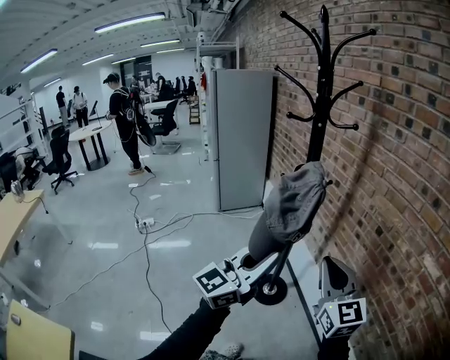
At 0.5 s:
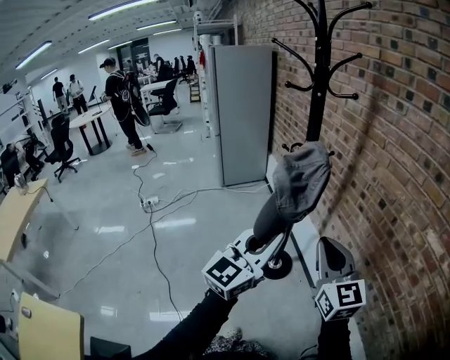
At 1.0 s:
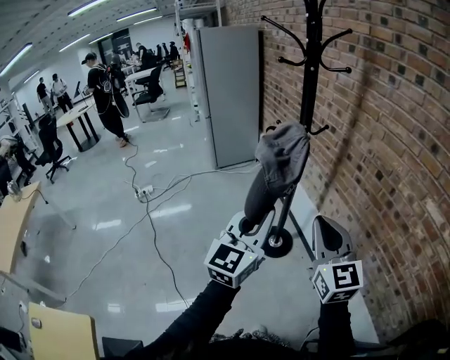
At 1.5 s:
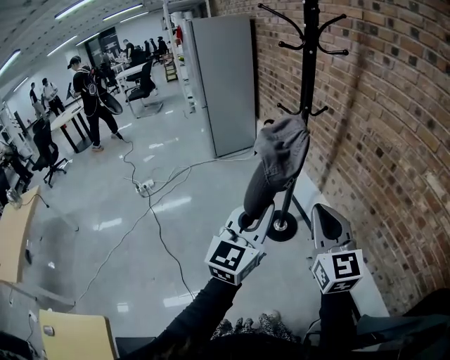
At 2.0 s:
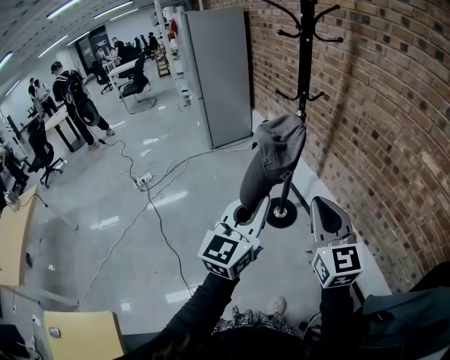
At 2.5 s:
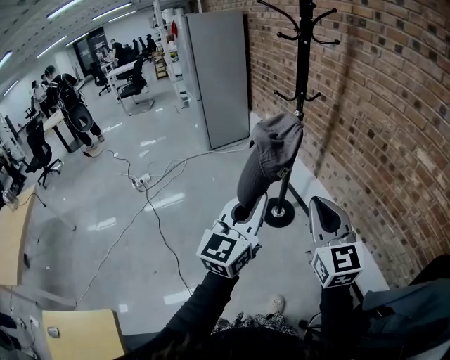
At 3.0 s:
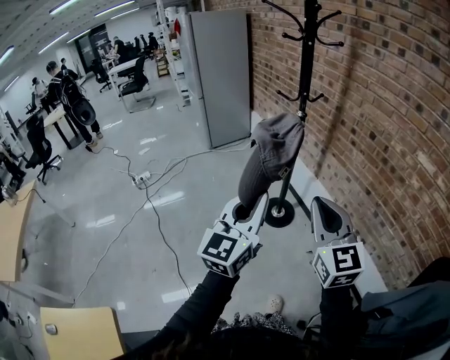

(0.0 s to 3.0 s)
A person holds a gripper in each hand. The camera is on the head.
0.0 s - 1.5 s: The two grippers go roughly 10 cm backward and to the left. The left gripper changes its angle by some 20 degrees.
1.5 s - 3.0 s: The grippers both shift backward by some 10 cm.

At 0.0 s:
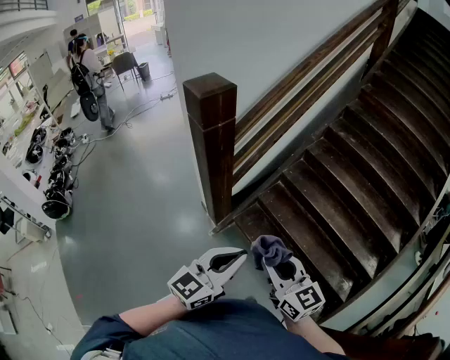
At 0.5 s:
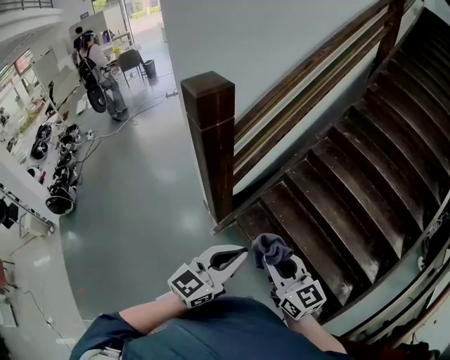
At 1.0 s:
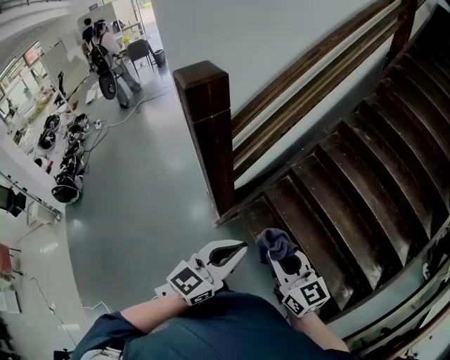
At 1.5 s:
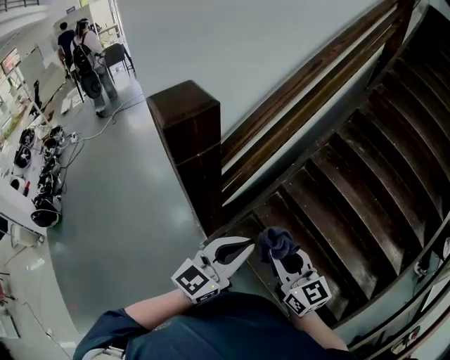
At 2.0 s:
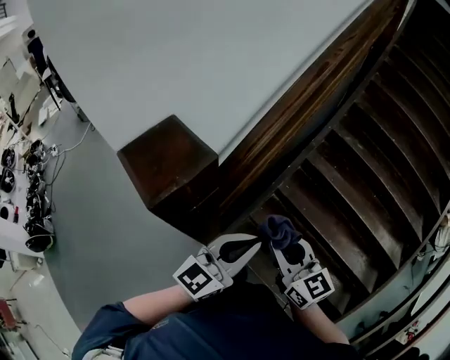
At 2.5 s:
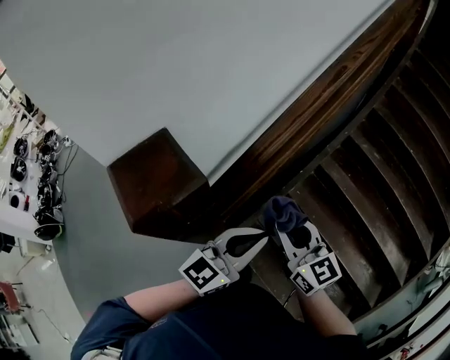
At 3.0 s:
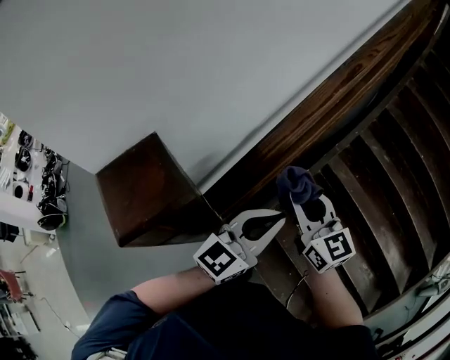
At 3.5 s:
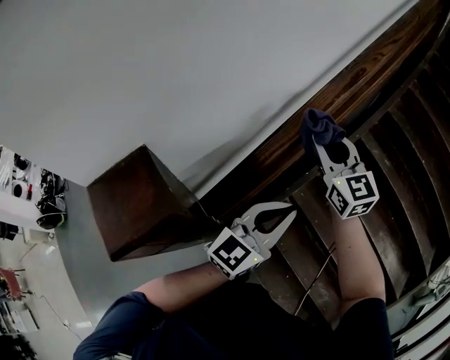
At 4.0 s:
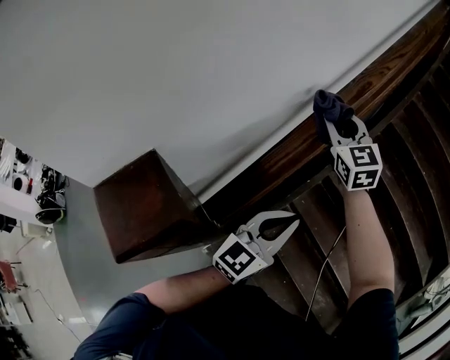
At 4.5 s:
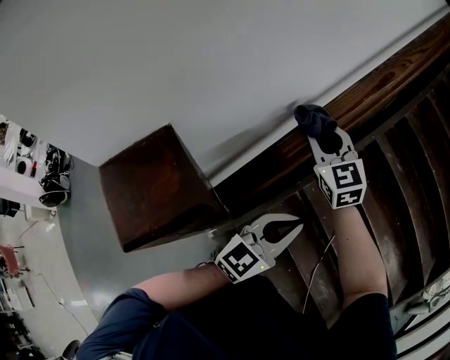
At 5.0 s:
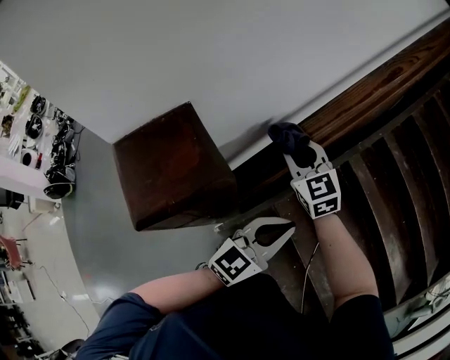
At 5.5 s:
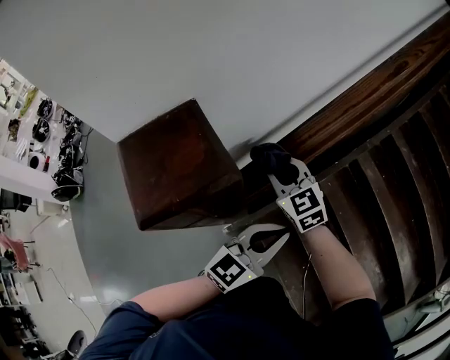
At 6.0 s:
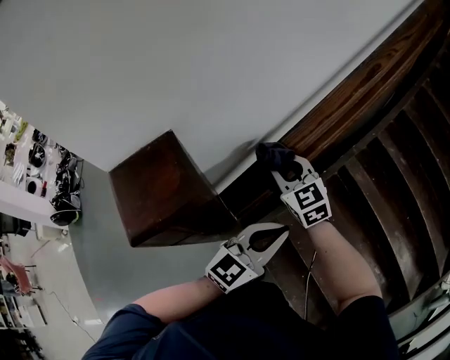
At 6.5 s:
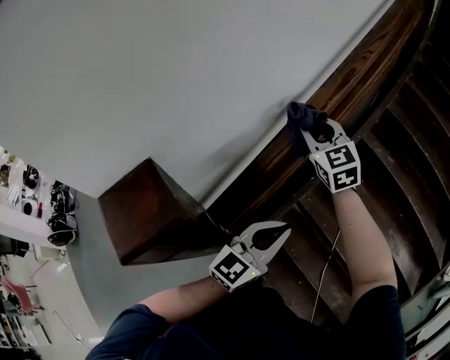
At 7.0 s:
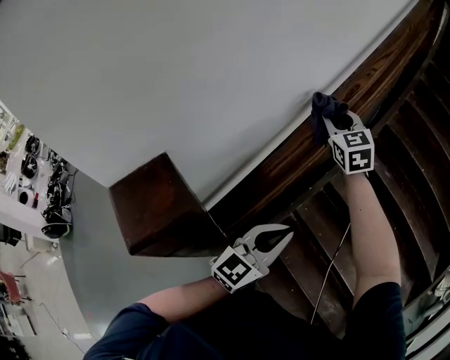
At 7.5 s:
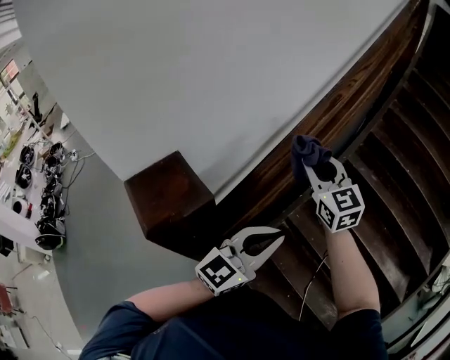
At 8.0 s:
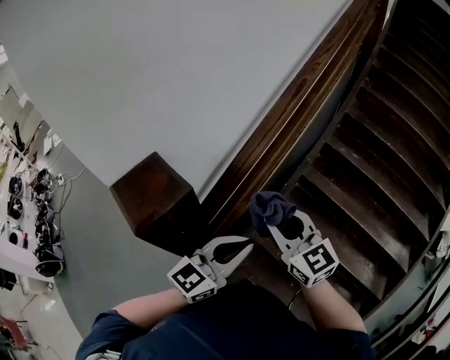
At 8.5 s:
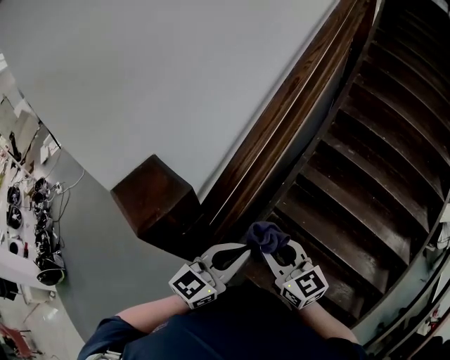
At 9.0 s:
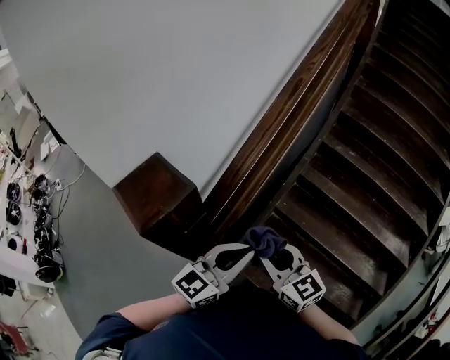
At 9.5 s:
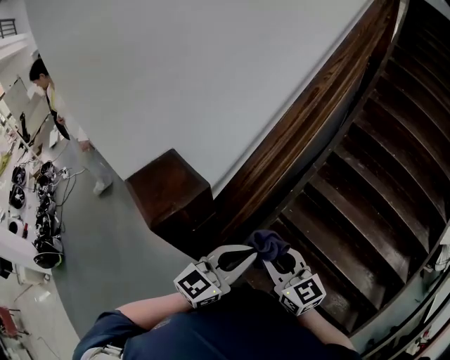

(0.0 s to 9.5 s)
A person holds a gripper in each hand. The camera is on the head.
0.0 s - 2.0 s: Both grippers travel together forward, approximately 40 cm.
2.0 s - 4.0 s: The right gripper goes roughly 40 cm forward, and swivels roughly 30 degrees, while the left gripper goes some 20 cm forward.
4.0 s - 5.5 s: The right gripper goes approximately 35 cm backward, to the left and downward, and rotates approximately 30 degrees. The left gripper shifts some 15 cm backward, downward and to the left.
5.5 s - 7.5 s: The right gripper shifts some 25 cm upward and to the right, goes forward and returns, some 25 cm each way, and turns by about 30 degrees, while the left gripper shifts approximately 10 cm upward.
7.5 s - 9.5 s: The right gripper is displaced backward and downward by approximately 30 cm. Meanwhile the left gripper shifts some 10 cm backward.

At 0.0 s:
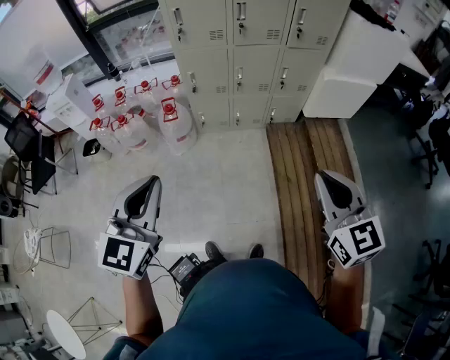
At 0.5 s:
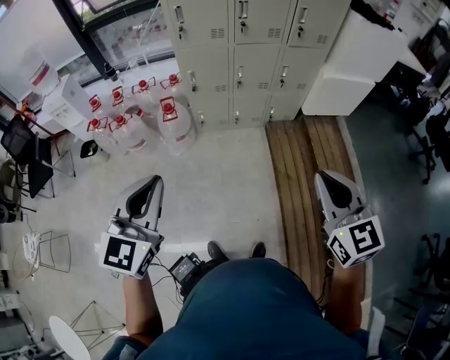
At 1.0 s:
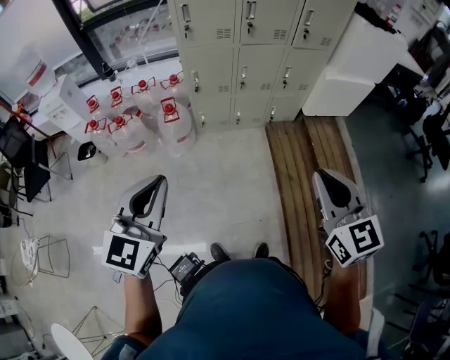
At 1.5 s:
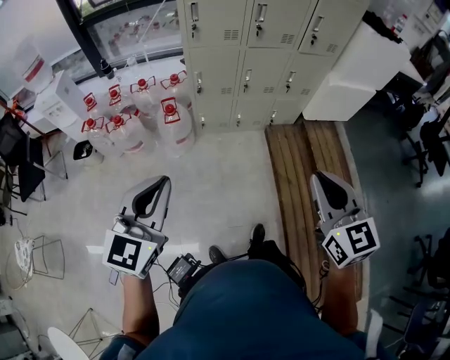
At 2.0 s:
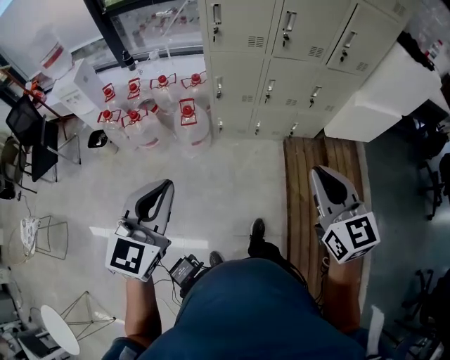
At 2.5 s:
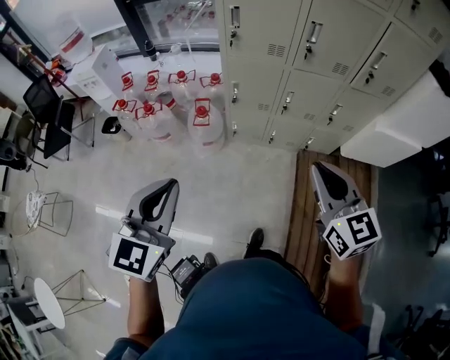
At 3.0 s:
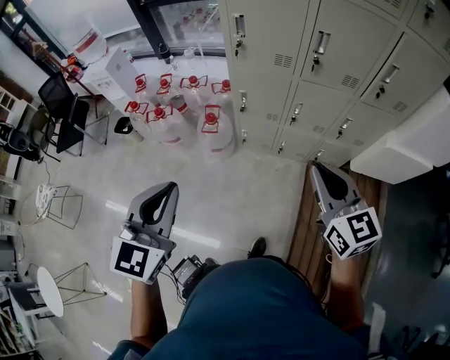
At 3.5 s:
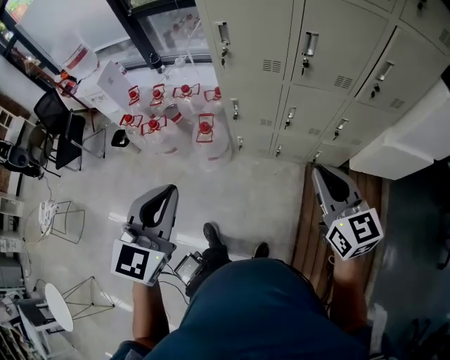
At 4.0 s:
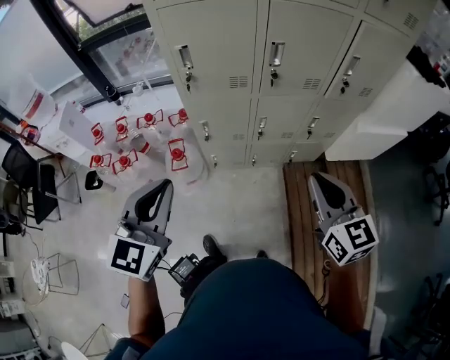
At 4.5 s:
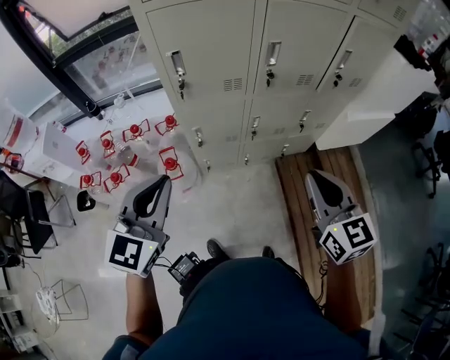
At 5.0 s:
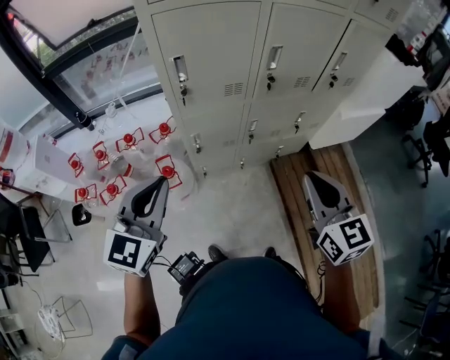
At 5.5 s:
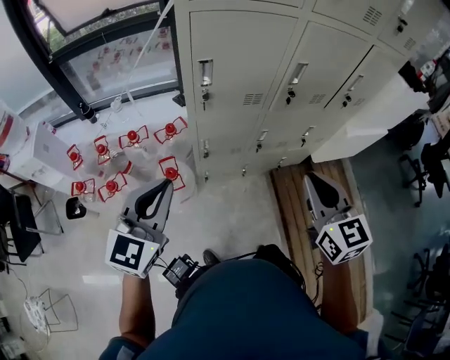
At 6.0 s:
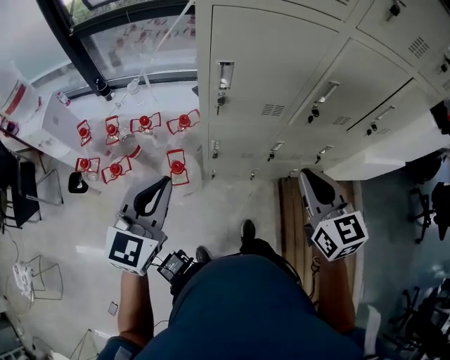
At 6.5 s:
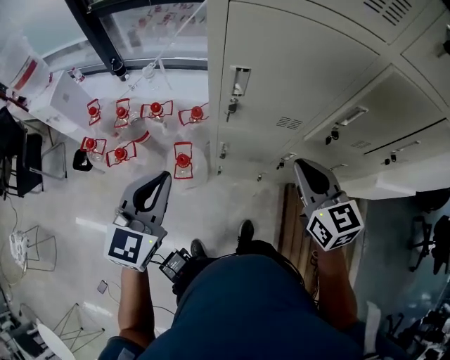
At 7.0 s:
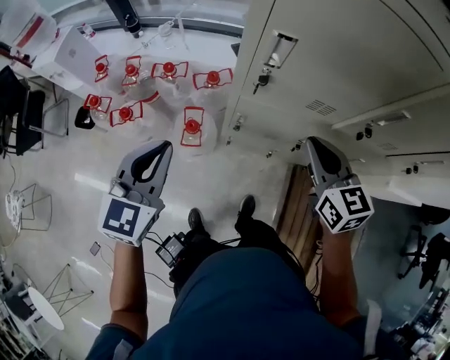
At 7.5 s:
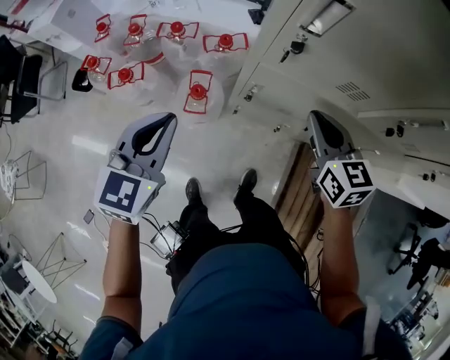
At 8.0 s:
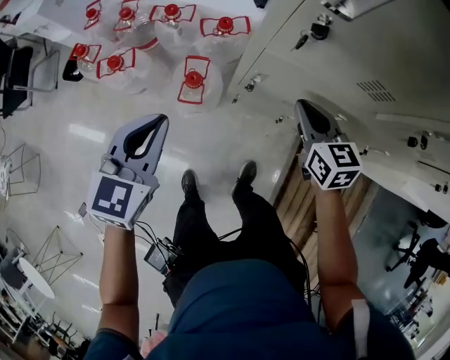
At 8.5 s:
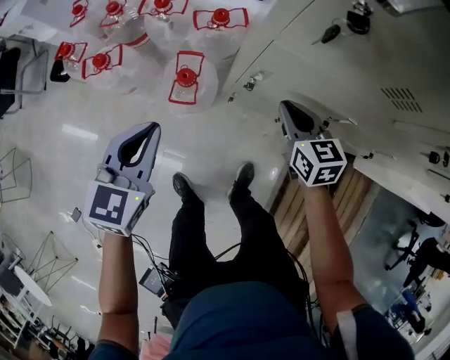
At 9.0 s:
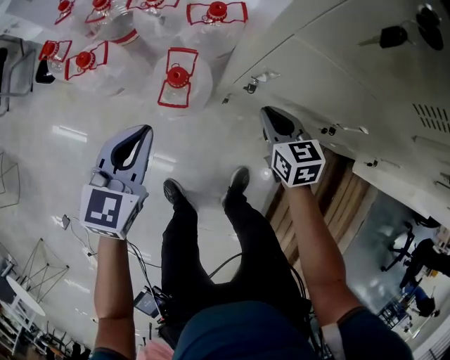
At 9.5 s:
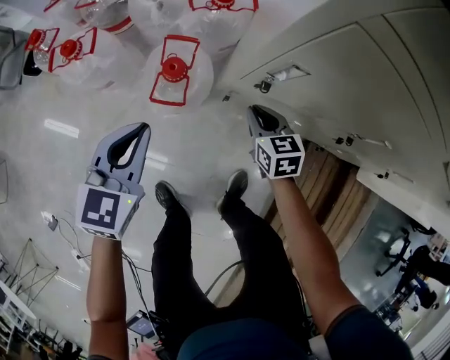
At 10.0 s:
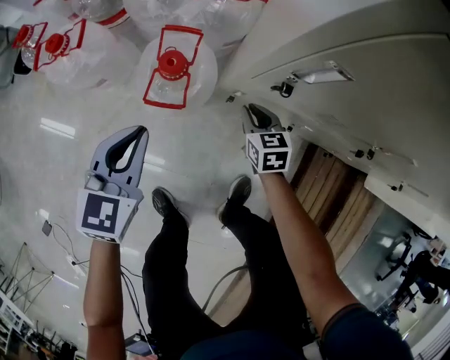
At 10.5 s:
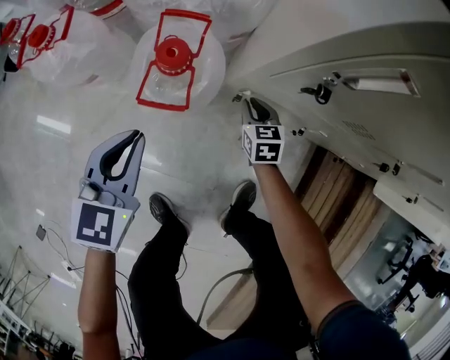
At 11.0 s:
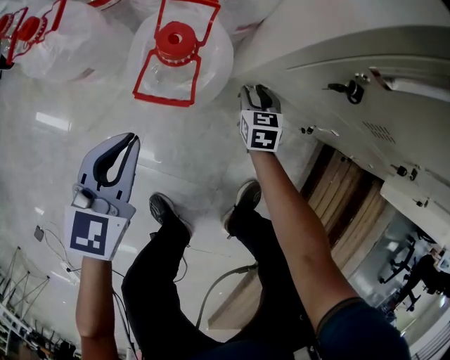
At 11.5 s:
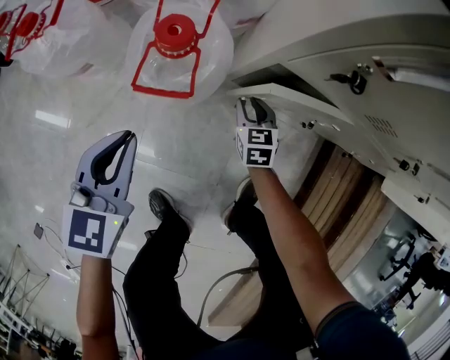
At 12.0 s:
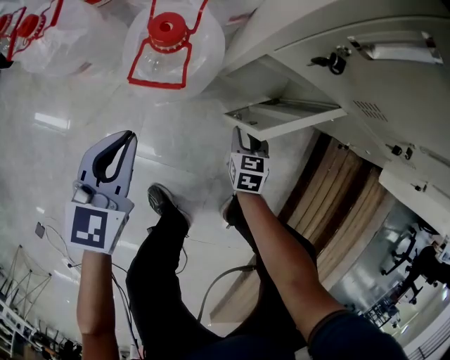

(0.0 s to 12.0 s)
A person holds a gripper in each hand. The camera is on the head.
0.0 s - 2.0 s: The grippers both shift forward and to the left by some 20 cm.
2.0 s - 4.0 s: The left gripper heads forward, covering roughly 30 cm; the right gripper is displaced forward and to the right by roughly 25 cm.
4.0 s - 6.0 s: Both grippers travel together to the left and forward, about 25 cm.
6.0 s - 8.0 s: The right gripper heads downward and forward, covering some 40 cm, and rotates roughly 20 degrees. The left gripper is displaced downward by some 25 cm, and changes its angle by approximately 20 degrees.
8.0 s - 10.0 s: Both grippers travel together downward, roughly 40 cm.
10.0 s - 12.0 s: The right gripper goes roughly 20 cm downward and backward, and opens its fingers. Meanwhile the left gripper is displaced downward by some 10 cm.

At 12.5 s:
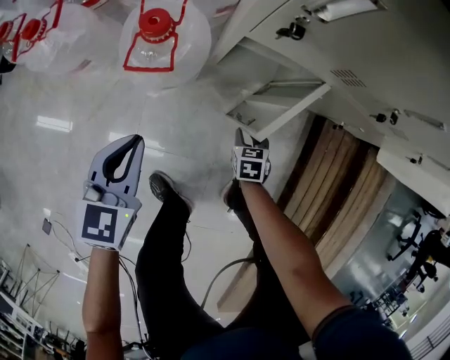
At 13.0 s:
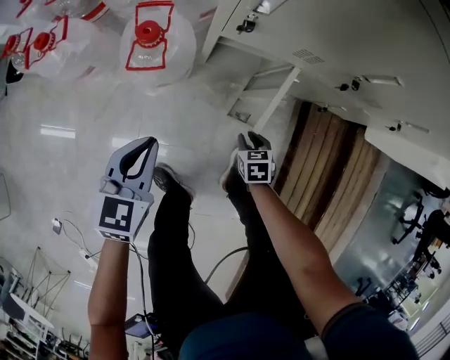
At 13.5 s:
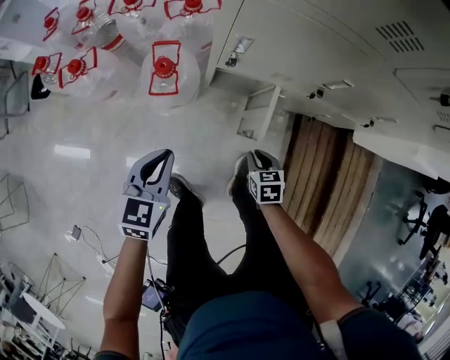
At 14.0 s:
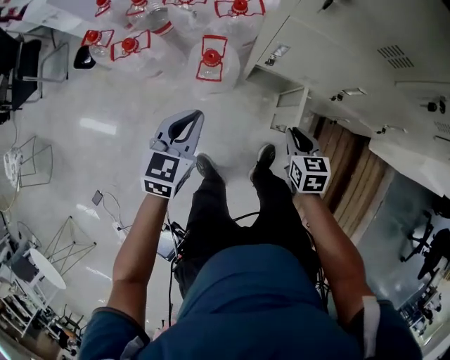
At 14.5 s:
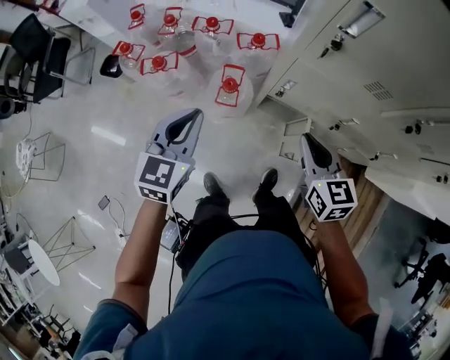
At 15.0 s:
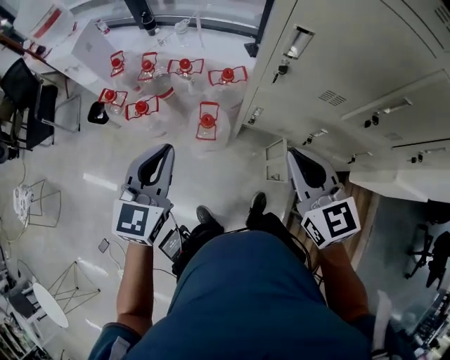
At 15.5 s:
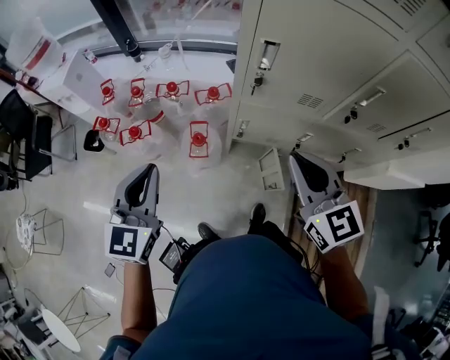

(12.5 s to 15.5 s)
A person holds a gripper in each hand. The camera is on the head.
12.5 s - 14.0 s: The grippers both shift upward by some 40 cm.
14.0 s - 15.5 s: The two grippers go approximately 35 cm upward. The right gripper tilts its fingers approximately 30 degrees upward. The left gripper swivels approximately 20 degrees.
